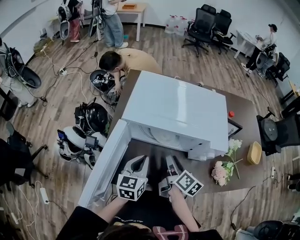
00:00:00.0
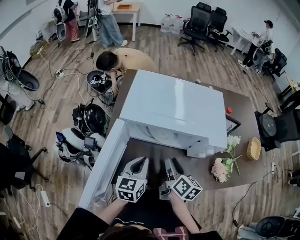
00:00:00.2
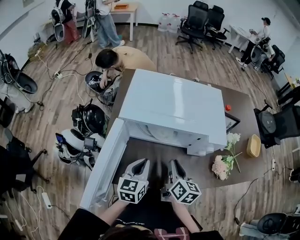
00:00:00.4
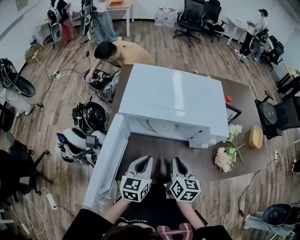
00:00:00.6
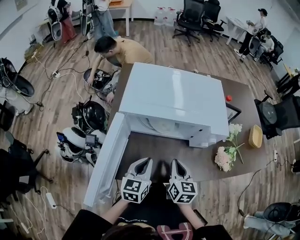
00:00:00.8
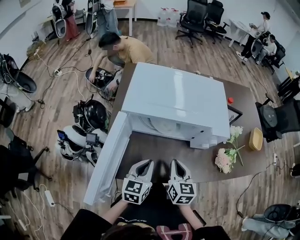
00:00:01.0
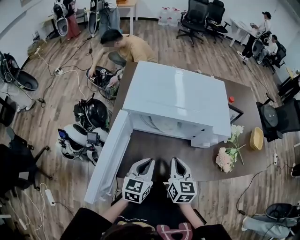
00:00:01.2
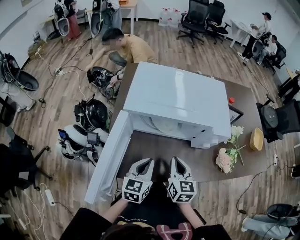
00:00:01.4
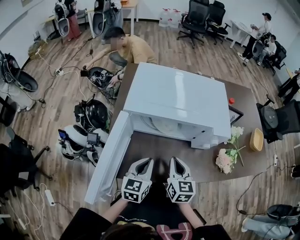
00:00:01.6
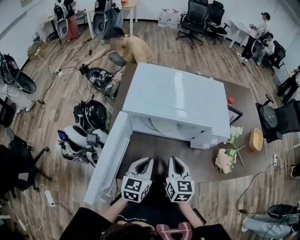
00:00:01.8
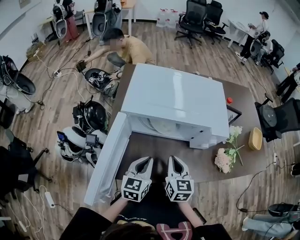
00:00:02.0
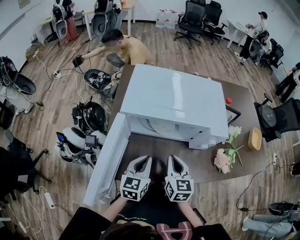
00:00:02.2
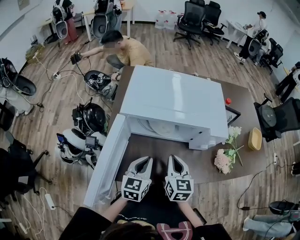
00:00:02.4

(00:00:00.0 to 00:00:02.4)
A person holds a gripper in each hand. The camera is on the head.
00:00:00.0 - 00:00:01.2: The left gripper moves approximately 5 cm.

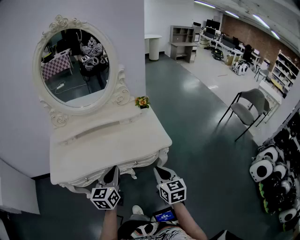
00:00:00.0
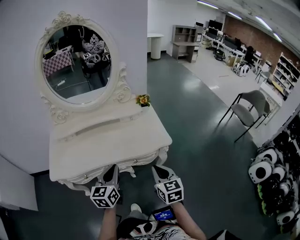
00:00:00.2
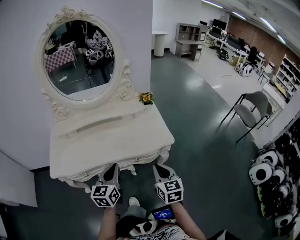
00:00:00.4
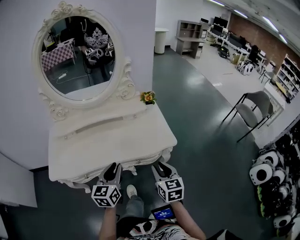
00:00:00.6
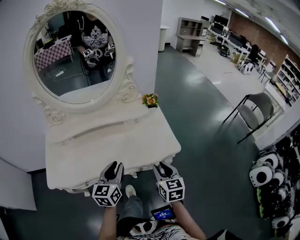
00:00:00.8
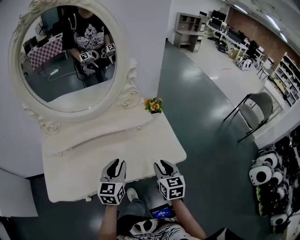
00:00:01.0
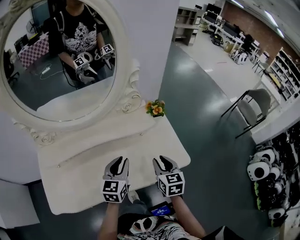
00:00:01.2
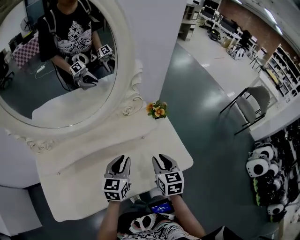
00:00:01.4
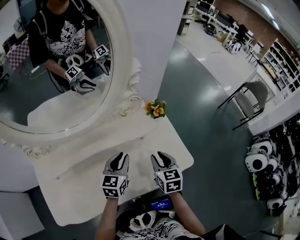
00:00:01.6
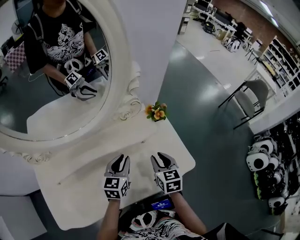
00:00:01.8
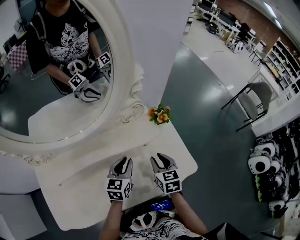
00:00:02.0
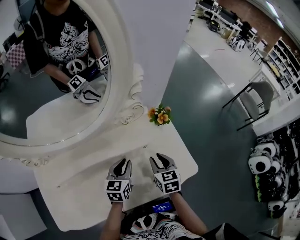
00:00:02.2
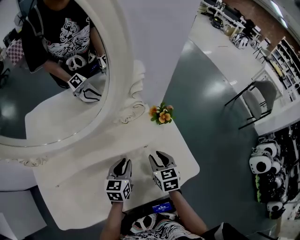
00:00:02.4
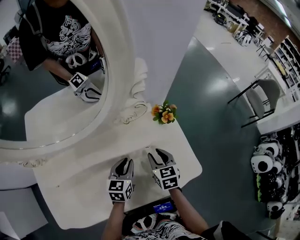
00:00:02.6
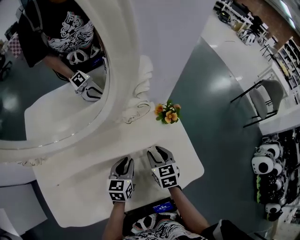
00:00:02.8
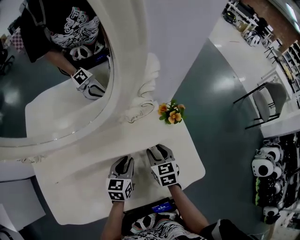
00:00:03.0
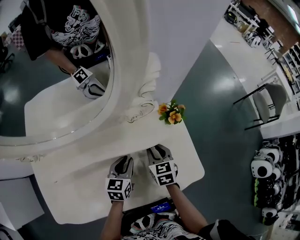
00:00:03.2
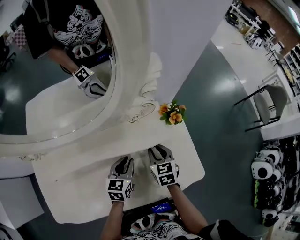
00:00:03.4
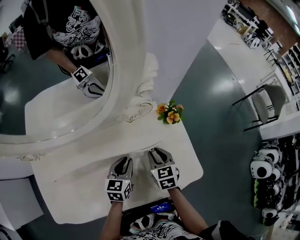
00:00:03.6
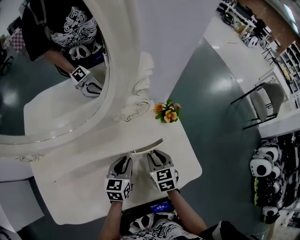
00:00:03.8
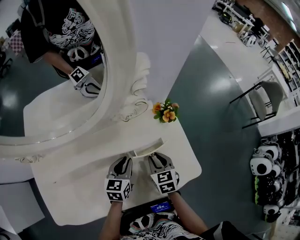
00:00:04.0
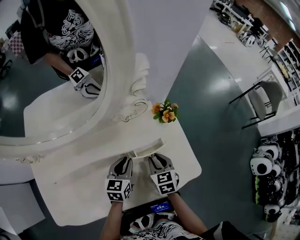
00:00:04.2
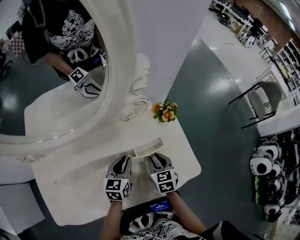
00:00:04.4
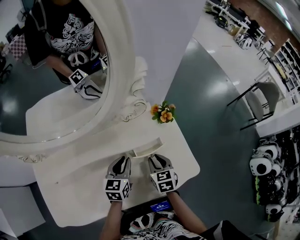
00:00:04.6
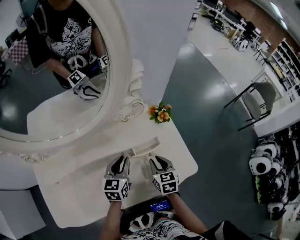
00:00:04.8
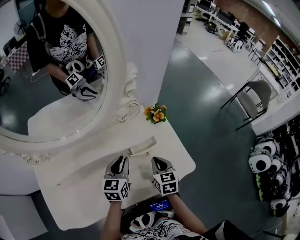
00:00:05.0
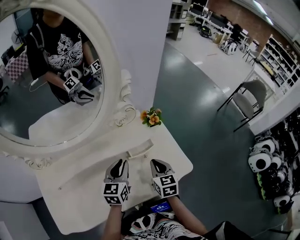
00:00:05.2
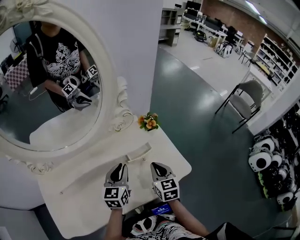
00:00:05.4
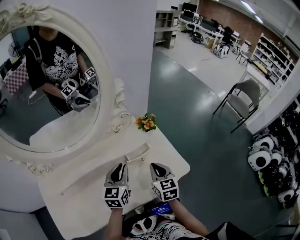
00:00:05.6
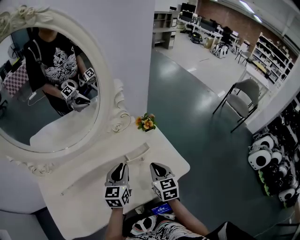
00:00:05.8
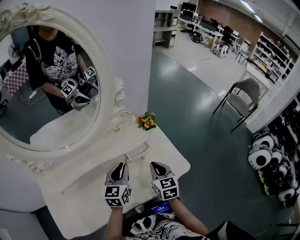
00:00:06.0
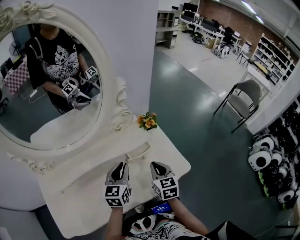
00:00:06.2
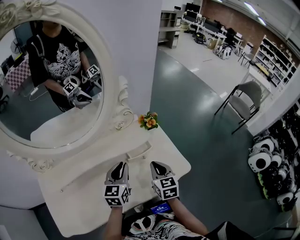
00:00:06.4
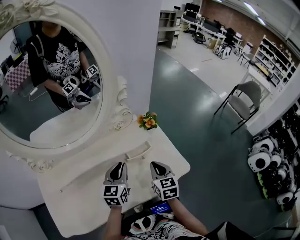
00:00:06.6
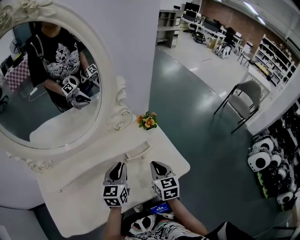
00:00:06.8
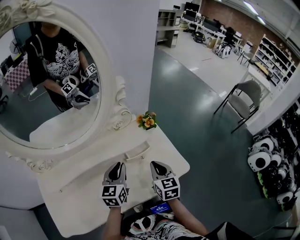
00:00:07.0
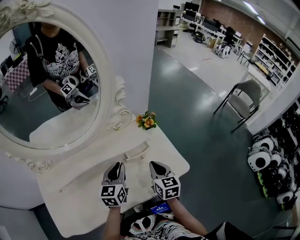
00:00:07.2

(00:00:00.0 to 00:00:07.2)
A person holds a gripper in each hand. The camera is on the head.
00:00:00.0 - 00:00:01.4: The two grippers go some 30 cm forward. The right gripper opens up.
00:00:01.4 - 00:00:02.8: The right gripper shifts roughly 15 cm forward and downward. Meanwhile the left gripper travels downward and forward by some 10 cm.
00:00:02.8 - 00:00:04.4: There are only small adjustments of the grippers.
00:00:04.4 - 00:00:05.8: The left gripper travels upward by roughly 10 cm. The right gripper shifts about 15 cm upward and backward, and closes up.
00:00:05.8 - 00:00:07.2: There are only small adjustments of the grippers.

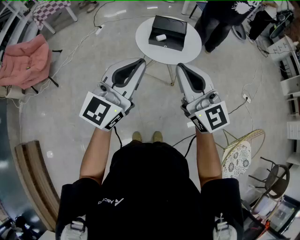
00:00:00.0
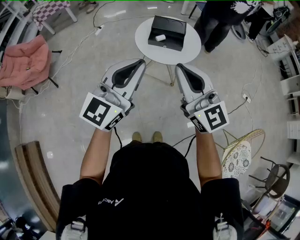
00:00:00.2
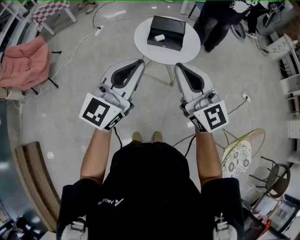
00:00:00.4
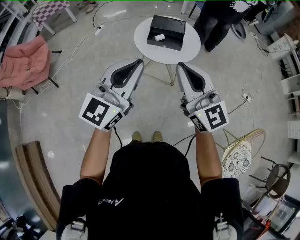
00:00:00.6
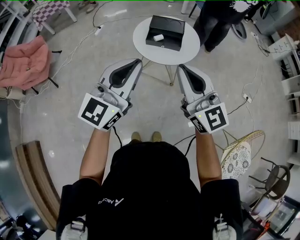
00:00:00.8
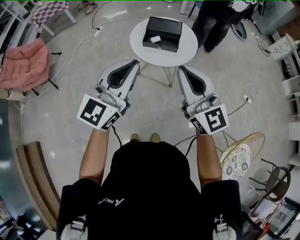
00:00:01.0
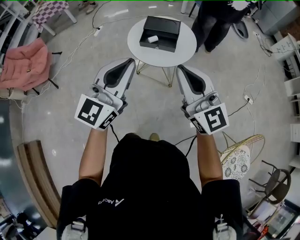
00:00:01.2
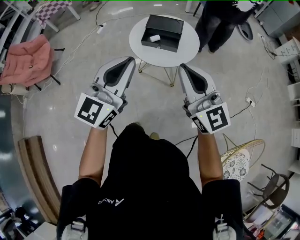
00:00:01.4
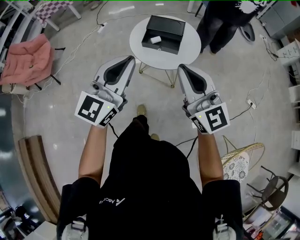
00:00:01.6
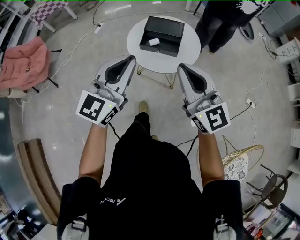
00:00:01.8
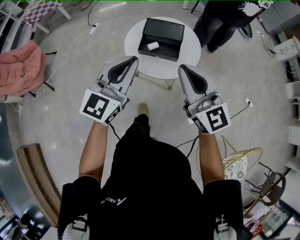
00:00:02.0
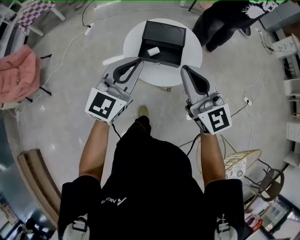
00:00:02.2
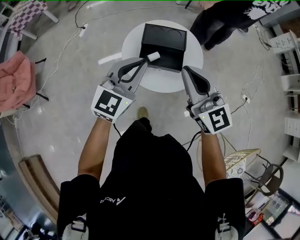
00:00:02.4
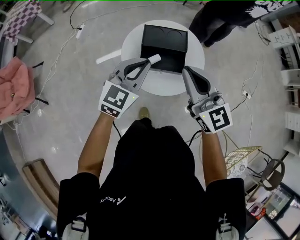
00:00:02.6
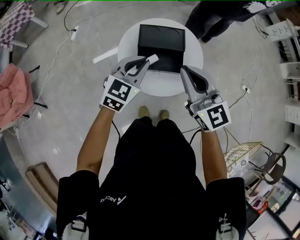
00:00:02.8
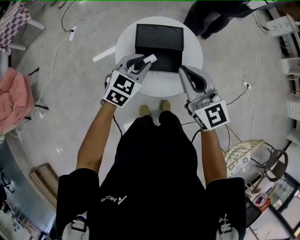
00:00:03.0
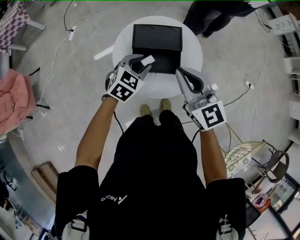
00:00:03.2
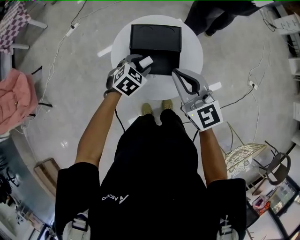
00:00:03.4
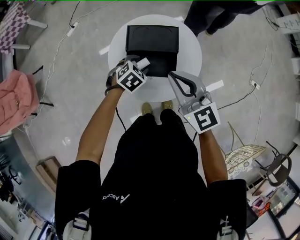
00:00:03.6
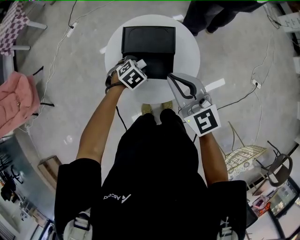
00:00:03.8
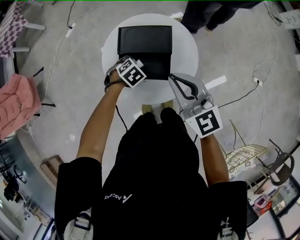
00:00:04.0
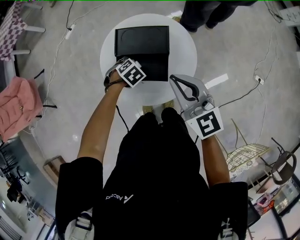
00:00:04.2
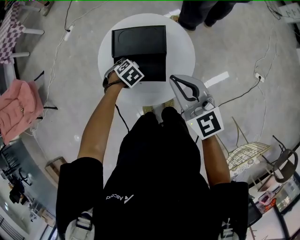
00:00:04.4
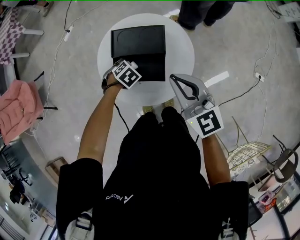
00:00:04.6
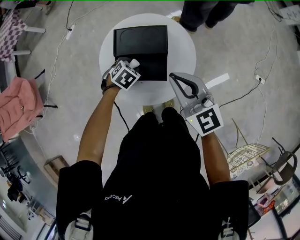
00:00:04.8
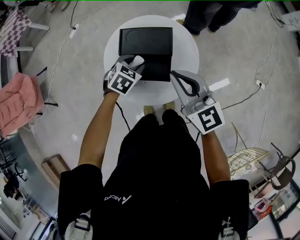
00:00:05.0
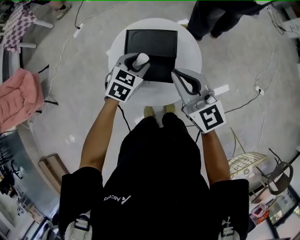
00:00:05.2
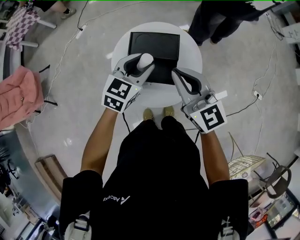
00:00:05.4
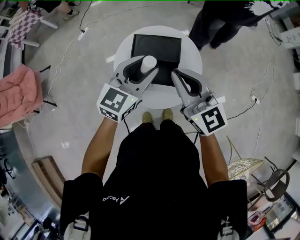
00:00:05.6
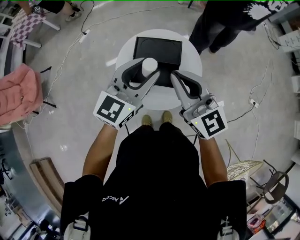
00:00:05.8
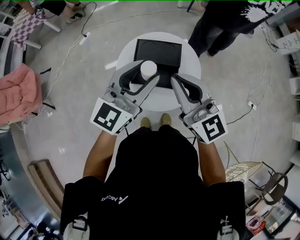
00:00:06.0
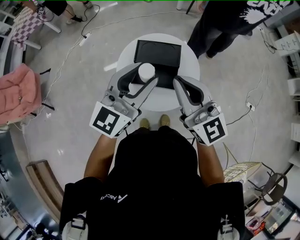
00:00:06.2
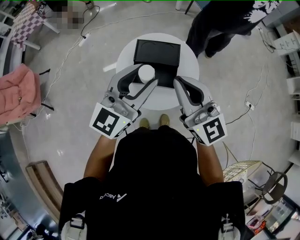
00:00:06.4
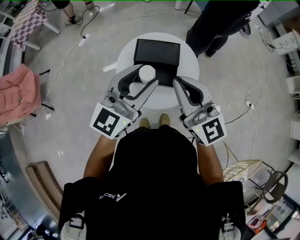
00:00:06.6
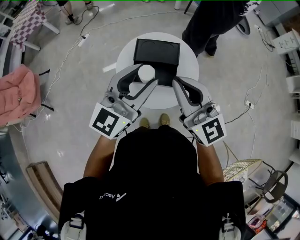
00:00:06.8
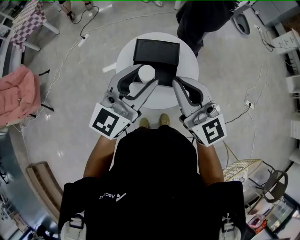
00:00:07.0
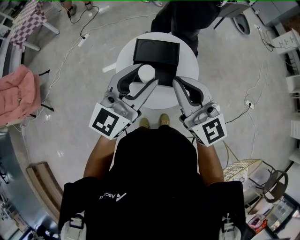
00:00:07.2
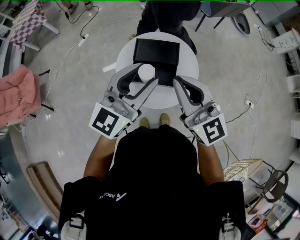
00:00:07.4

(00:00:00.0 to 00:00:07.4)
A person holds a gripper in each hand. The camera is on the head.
00:00:00.0 - 00:00:01.4: The grippers both shift to the right and forward by approximately 10 cm.
00:00:01.4 - 00:00:03.0: The left gripper moves forward and downward, some 50 cm, points its fingers approximately 40 degrees further downward, and opens. Meanwhile the right gripper is displaced forward by approximately 35 cm, and rotates approximately 20 degrees.
00:00:03.0 - 00:00:04.4: The left gripper shifts roughly 25 cm downward, tilts its fingers about 50 degrees downward, and opens its fingers; the right gripper ends up approximately 15 cm from where it was.
00:00:04.4 - 00:00:06.0: The left gripper heads upward, covering about 40 cm, and tilts its fingers some 80 degrees upward, while the right gripper travels upward by some 15 cm.
00:00:06.0 - 00:00:07.4: There are only small adjustments of the grippers.

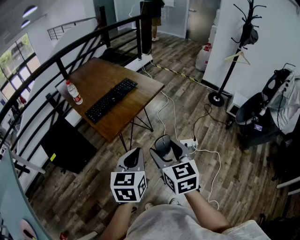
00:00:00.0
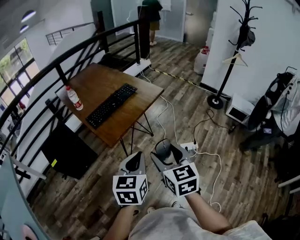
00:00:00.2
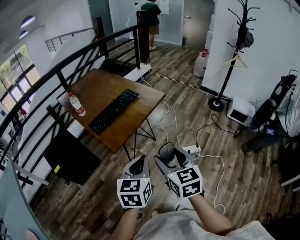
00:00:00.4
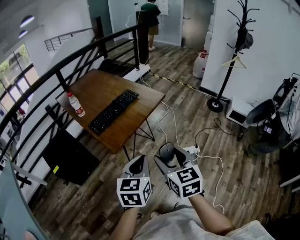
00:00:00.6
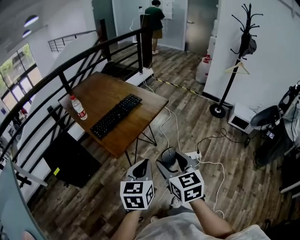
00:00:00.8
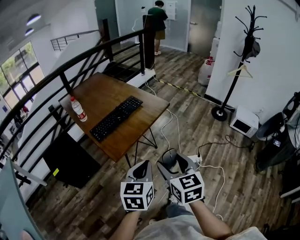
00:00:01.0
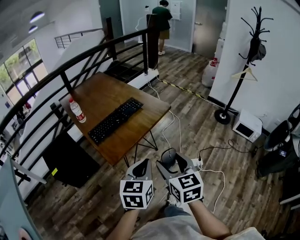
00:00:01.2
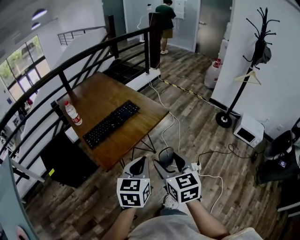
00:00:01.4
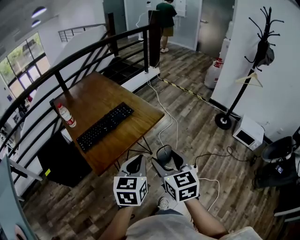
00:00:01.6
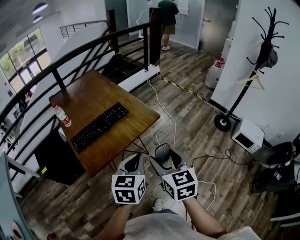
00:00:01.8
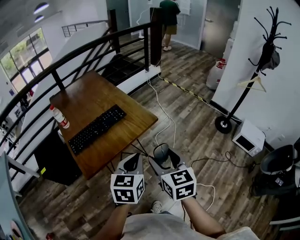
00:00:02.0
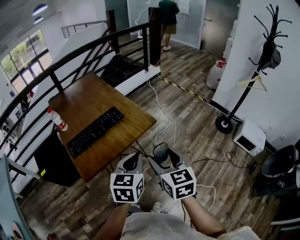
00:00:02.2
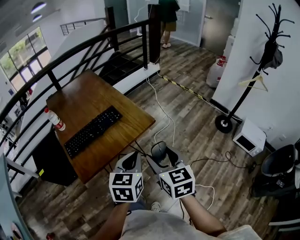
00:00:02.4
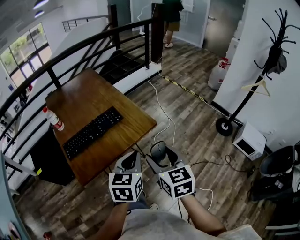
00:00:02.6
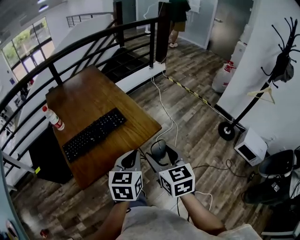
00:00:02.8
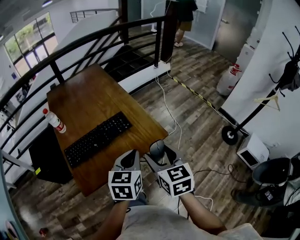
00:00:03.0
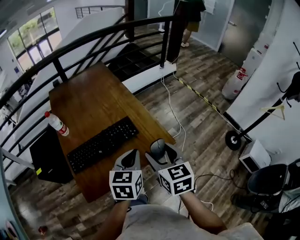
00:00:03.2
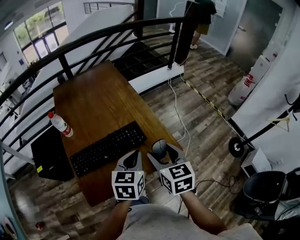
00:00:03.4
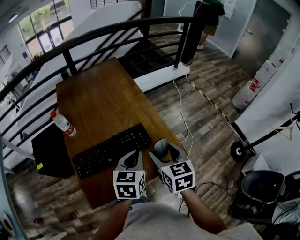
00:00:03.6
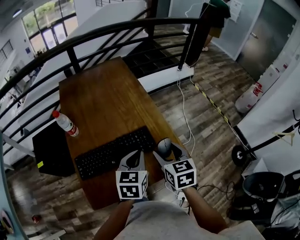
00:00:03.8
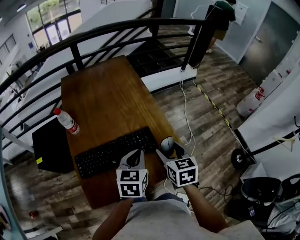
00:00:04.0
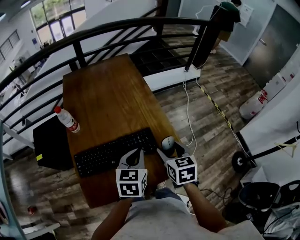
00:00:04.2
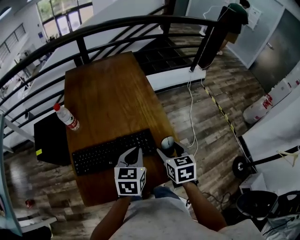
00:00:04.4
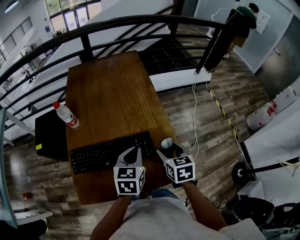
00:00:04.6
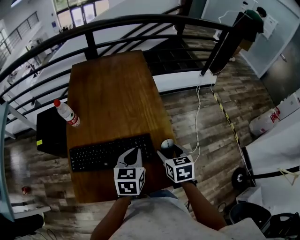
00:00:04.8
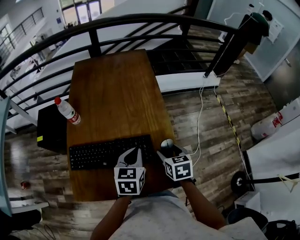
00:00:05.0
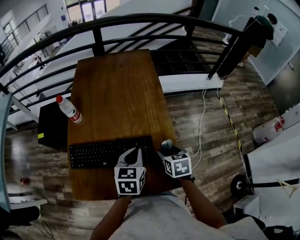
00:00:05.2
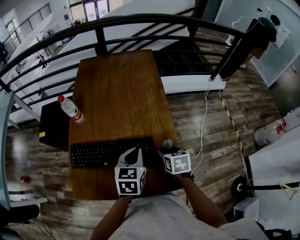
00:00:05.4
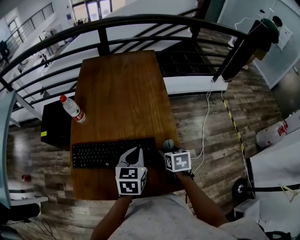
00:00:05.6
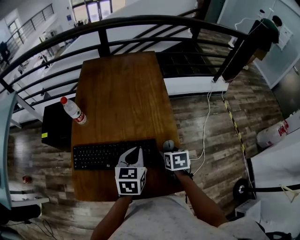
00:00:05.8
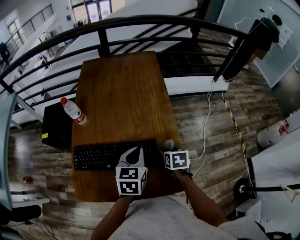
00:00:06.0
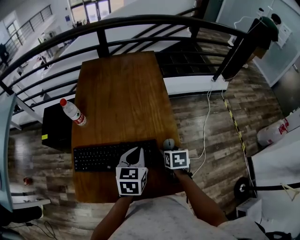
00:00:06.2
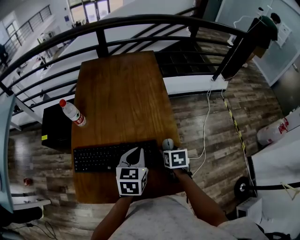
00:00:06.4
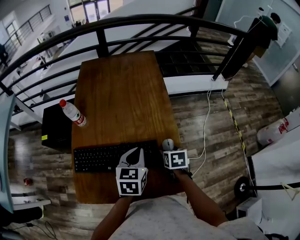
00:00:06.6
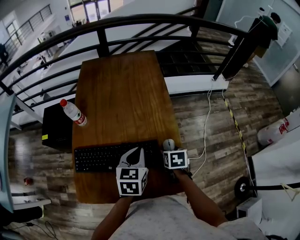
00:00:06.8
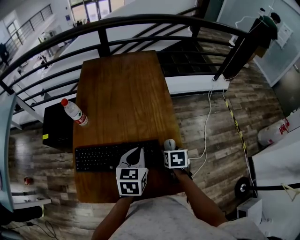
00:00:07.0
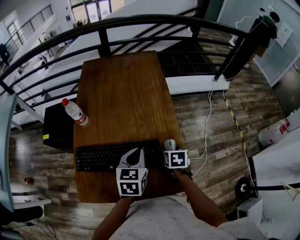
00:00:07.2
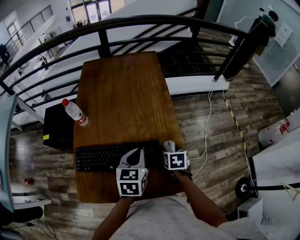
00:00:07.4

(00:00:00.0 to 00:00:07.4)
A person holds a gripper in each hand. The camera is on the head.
00:00:00.0 - 00:00:01.4: Both grippers travel together forward, roughly 15 cm.
00:00:01.4 - 00:00:03.0: Both grippers travel together forward, about 25 cm.
00:00:03.0 - 00:00:04.4: The left gripper heads forward and to the left, covering approximately 20 cm. The right gripper travels forward by approximately 25 cm.
00:00:04.4 - 00:00:06.0: The left gripper moves forward, approximately 5 cm. The right gripper shifts about 15 cm downward and forward, and changes its angle by approximately 20 degrees.
00:00:06.0 - 00:00:07.4: There are only small adjustments of the grippers.
